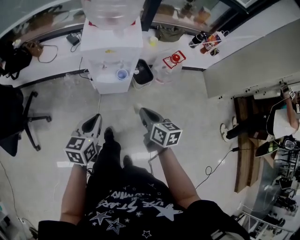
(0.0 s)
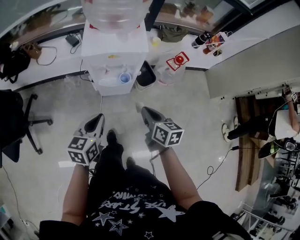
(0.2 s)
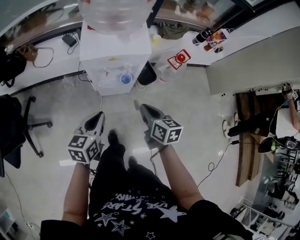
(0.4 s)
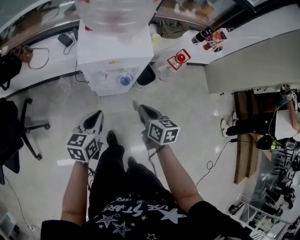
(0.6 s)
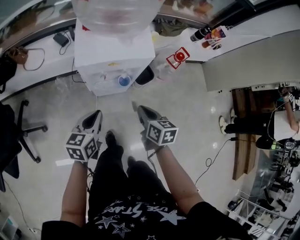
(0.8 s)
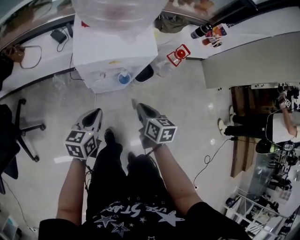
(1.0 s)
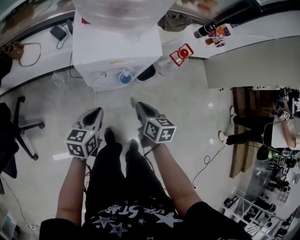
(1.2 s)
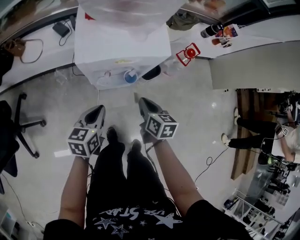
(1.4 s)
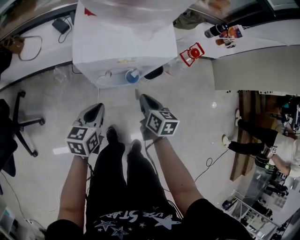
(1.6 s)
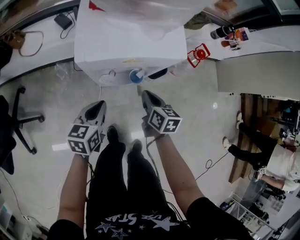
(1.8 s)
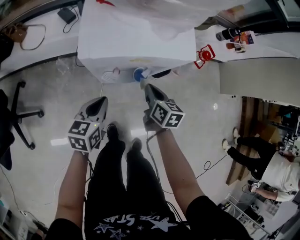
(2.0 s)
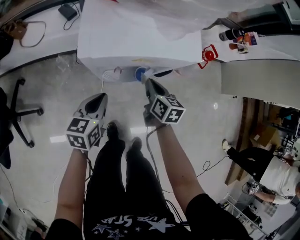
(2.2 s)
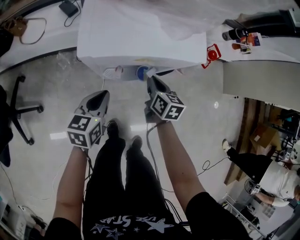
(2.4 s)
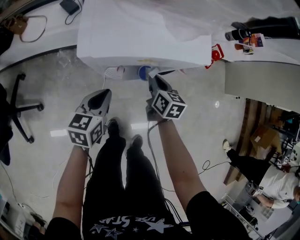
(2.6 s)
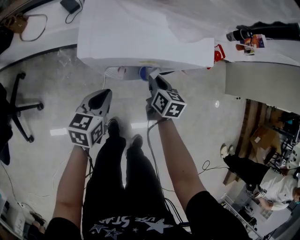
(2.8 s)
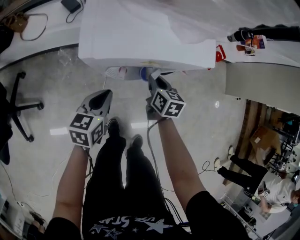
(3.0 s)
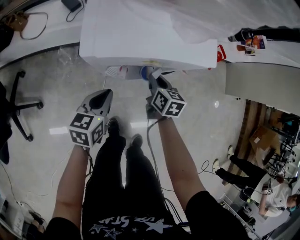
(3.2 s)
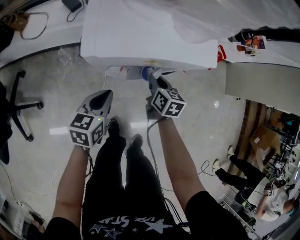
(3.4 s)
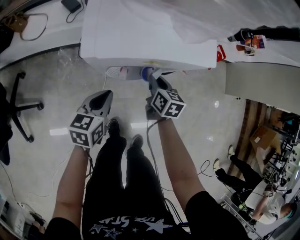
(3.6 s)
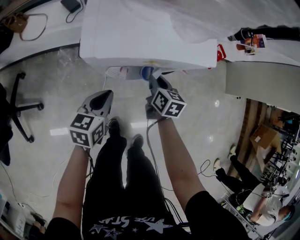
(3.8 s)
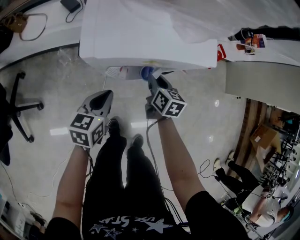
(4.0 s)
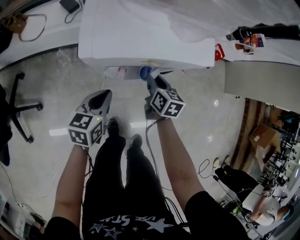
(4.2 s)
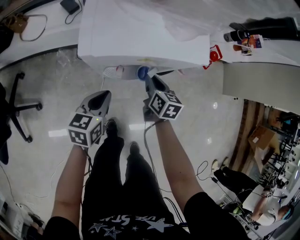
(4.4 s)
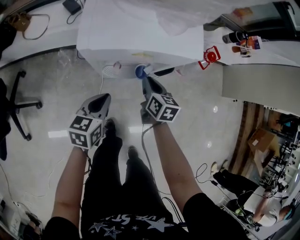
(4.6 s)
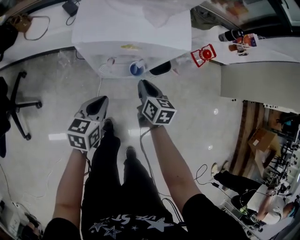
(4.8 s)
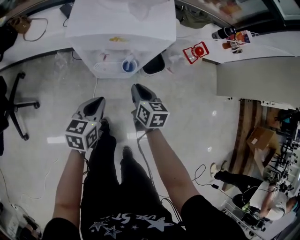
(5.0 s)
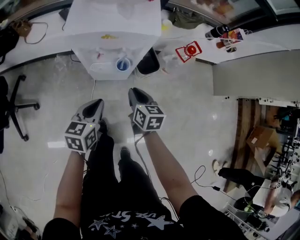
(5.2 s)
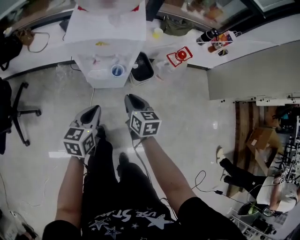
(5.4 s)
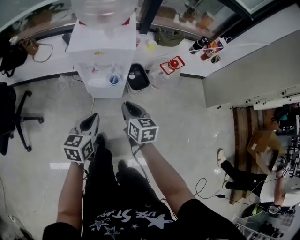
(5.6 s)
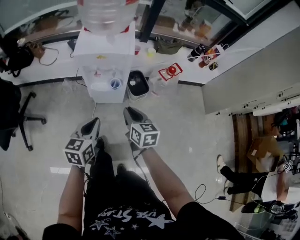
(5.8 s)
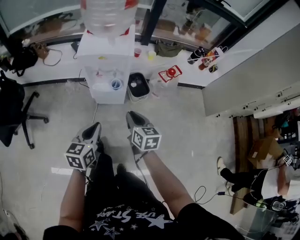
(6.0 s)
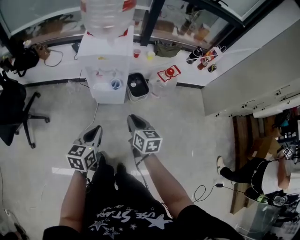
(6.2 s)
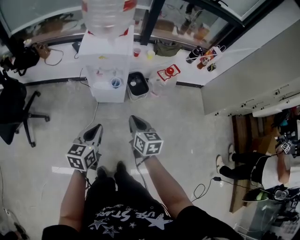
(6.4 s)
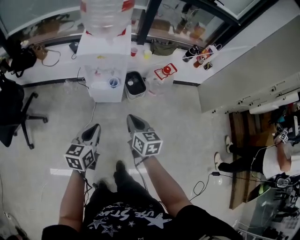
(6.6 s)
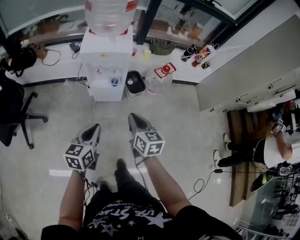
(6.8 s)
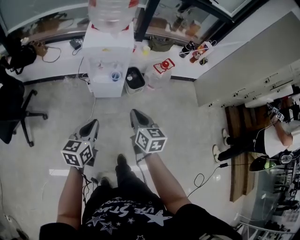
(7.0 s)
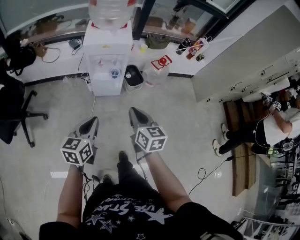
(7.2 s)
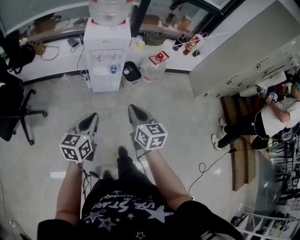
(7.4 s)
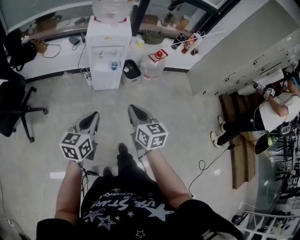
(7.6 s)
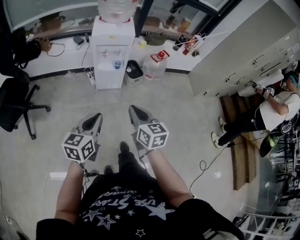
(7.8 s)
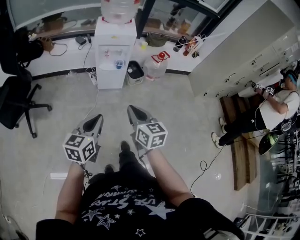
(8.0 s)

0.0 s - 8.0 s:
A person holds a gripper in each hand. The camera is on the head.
0.0 s - 1.6 s: The grippers both shift forward and downward by some 25 cm.
1.6 s - 3.2 s: The left gripper goes approximately 5 cm downward. Meanwhile the right gripper goes roughly 15 cm forward and downward.
3.2 s - 4.8 s: The grippers both shift backward by about 5 cm.
4.8 s - 6.4 s: The left gripper moves backward, upward and to the right, roughly 35 cm. The right gripper travels backward and upward by approximately 35 cm.
6.4 s - 8.0 s: The two grippers go some 30 cm backward.

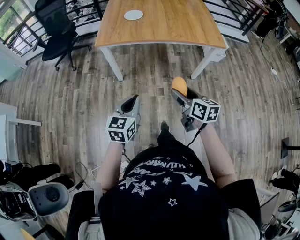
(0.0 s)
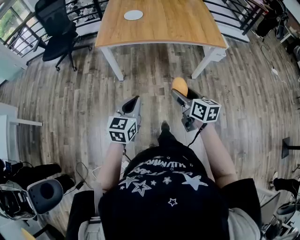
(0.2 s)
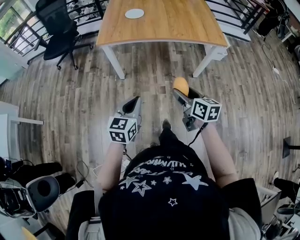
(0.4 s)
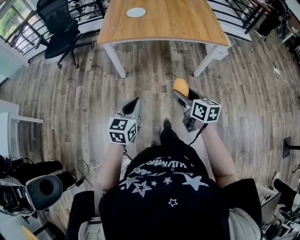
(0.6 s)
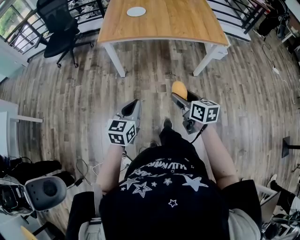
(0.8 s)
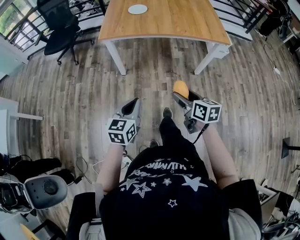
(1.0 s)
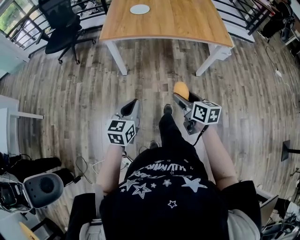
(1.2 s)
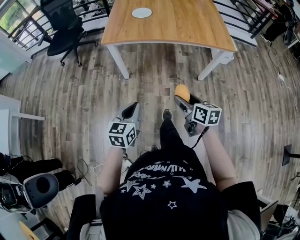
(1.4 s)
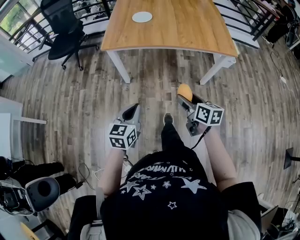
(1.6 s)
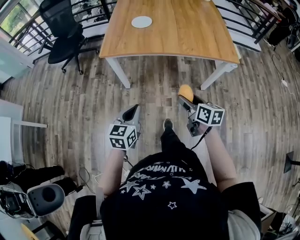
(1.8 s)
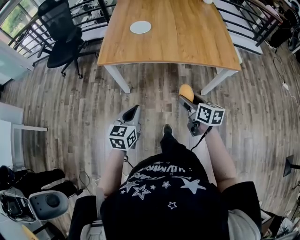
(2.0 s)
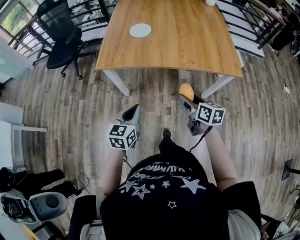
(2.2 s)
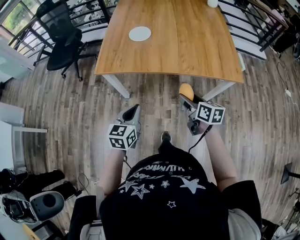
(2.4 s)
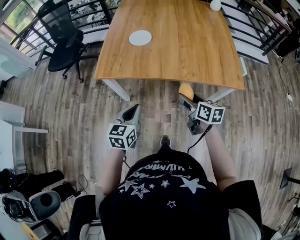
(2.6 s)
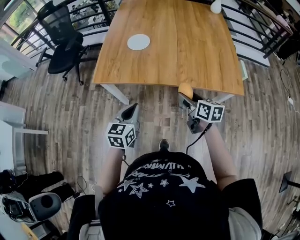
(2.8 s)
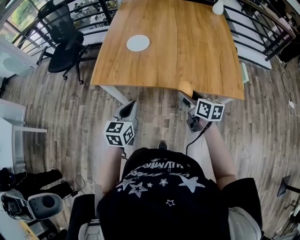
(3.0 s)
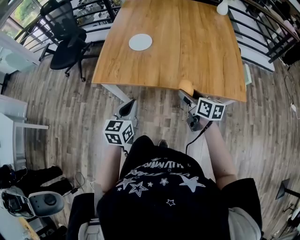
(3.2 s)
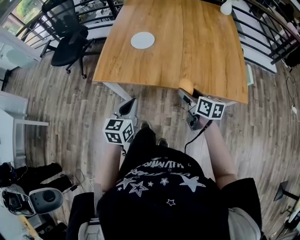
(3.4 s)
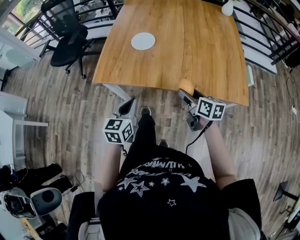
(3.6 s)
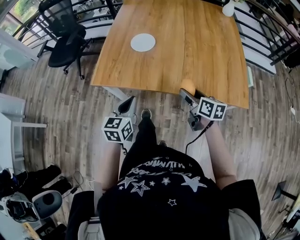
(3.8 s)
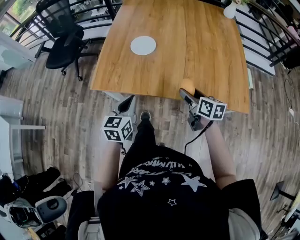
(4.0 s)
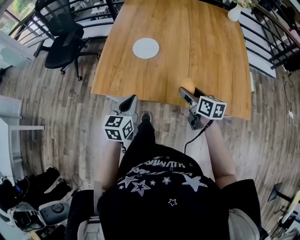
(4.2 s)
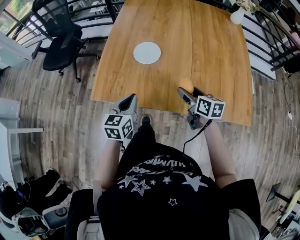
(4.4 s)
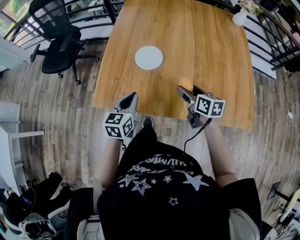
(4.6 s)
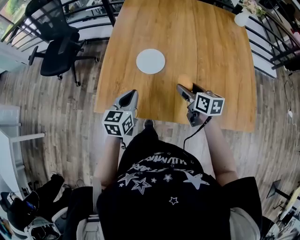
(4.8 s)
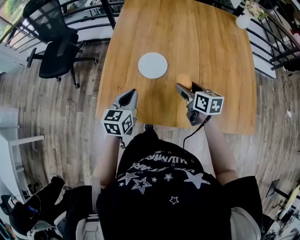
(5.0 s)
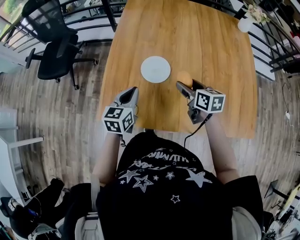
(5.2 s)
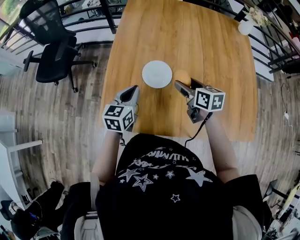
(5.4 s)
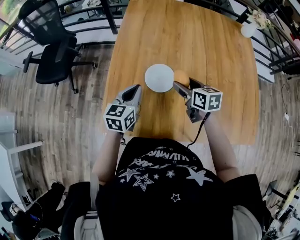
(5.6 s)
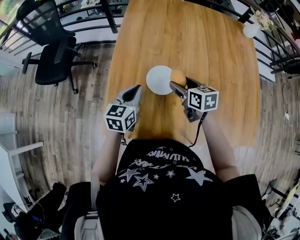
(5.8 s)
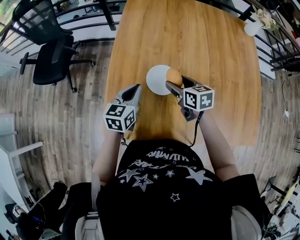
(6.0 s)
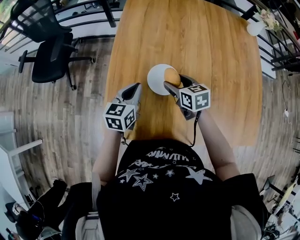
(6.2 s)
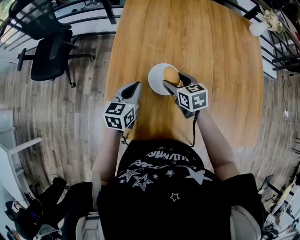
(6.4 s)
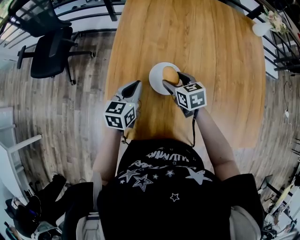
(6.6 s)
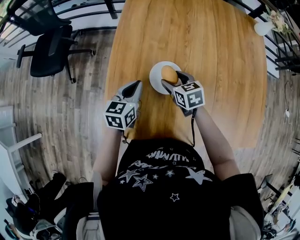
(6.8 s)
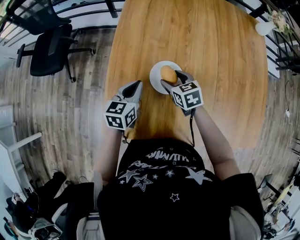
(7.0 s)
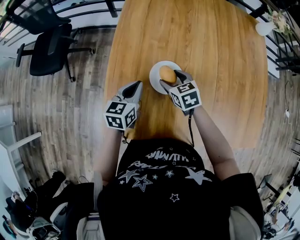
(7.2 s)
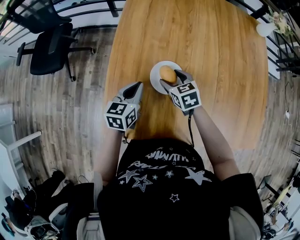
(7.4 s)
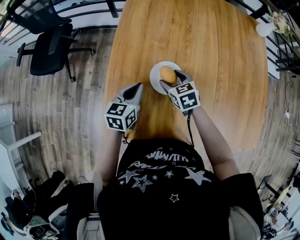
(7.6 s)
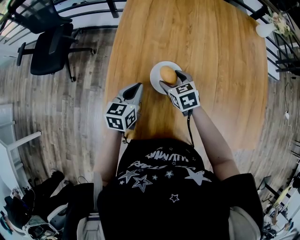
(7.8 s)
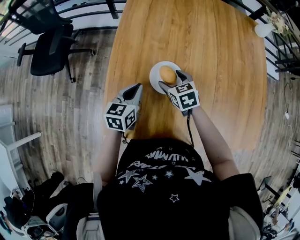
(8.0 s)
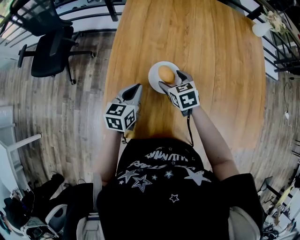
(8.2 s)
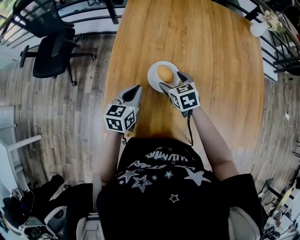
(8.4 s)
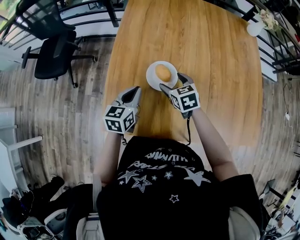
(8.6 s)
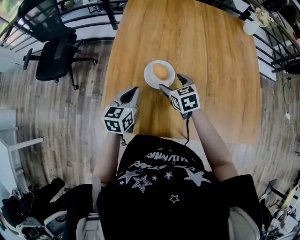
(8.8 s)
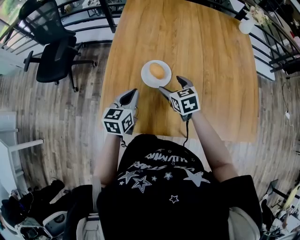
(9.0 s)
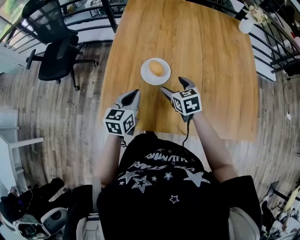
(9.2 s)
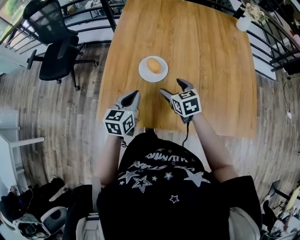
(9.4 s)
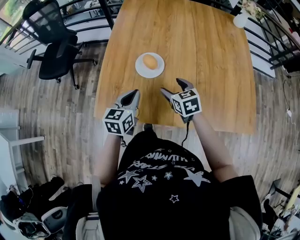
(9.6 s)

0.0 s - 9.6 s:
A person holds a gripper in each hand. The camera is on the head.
0.0 s - 1.6 s: The right gripper moves forward, roughly 5 cm; the left gripper moves some 5 cm.
1.6 s - 3.2 s: Both grippers travel together forward, approximately 30 cm.
3.2 s - 4.8 s: Both grippers travel together forward, some 25 cm.
4.8 s - 6.4 s: The right gripper goes some 20 cm forward and to the left, and rotates about 20 degrees. The left gripper is displaced forward by roughly 15 cm.
6.4 s - 8.0 s: There are only small adjustments of the grippers.
8.0 s - 9.6 s: The two grippers go approximately 15 cm backward, to the right and upward.

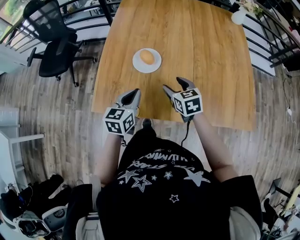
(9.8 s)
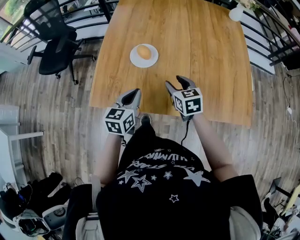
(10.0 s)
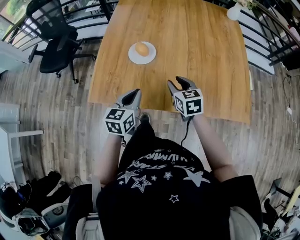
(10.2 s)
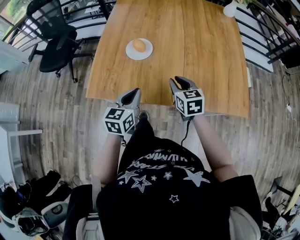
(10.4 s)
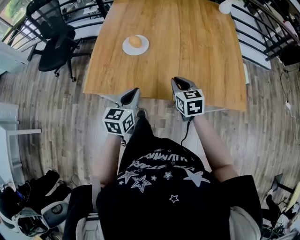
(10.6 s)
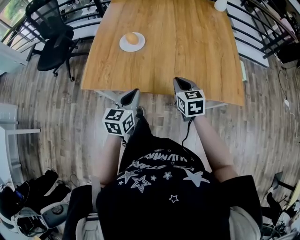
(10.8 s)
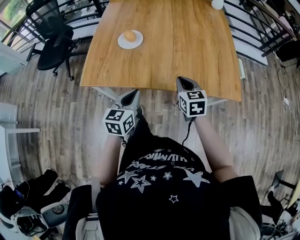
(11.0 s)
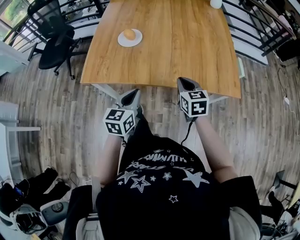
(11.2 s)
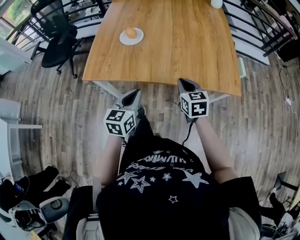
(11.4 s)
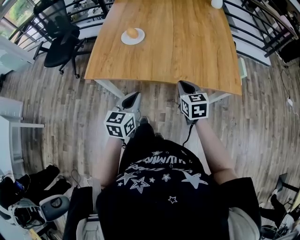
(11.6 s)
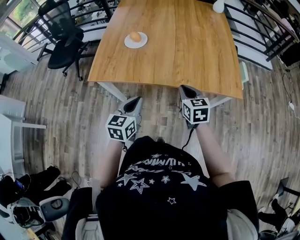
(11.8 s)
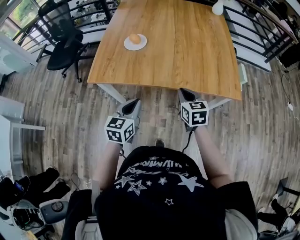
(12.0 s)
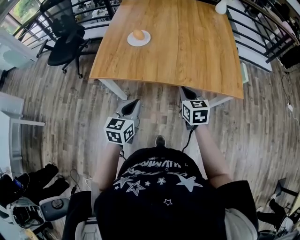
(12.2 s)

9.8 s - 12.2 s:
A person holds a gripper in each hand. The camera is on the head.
9.8 s - 11.0 s: The two grippers go some 20 cm backward and to the right. The right gripper closes.
11.0 s - 12.2 s: Both grippers travel together backward, about 10 cm.

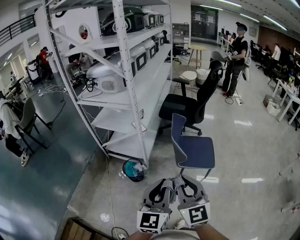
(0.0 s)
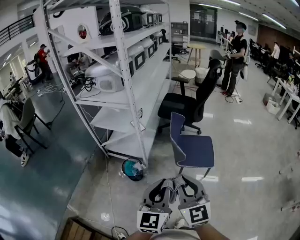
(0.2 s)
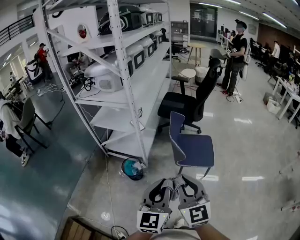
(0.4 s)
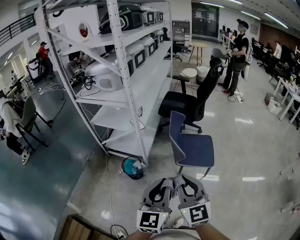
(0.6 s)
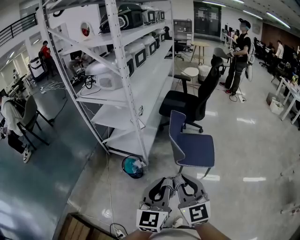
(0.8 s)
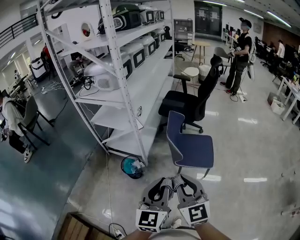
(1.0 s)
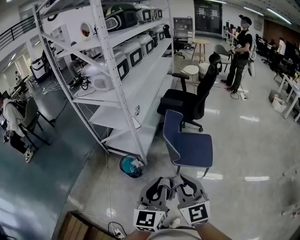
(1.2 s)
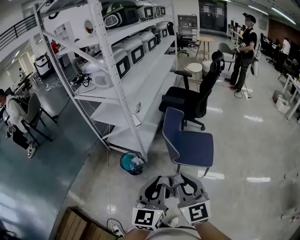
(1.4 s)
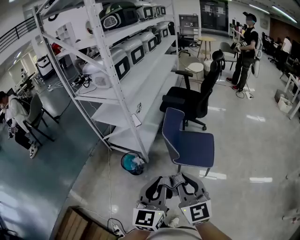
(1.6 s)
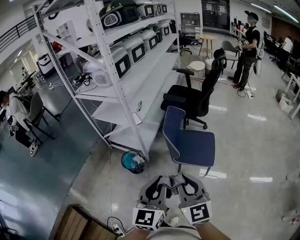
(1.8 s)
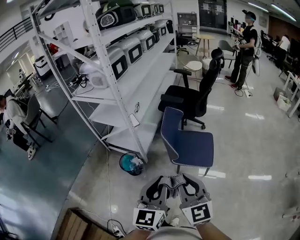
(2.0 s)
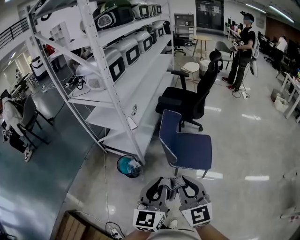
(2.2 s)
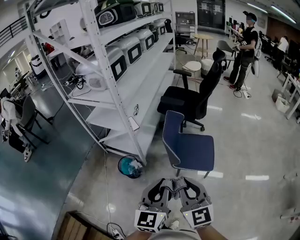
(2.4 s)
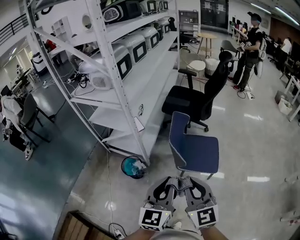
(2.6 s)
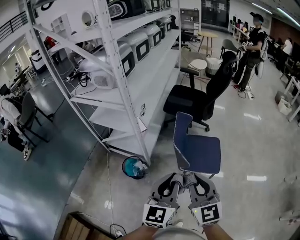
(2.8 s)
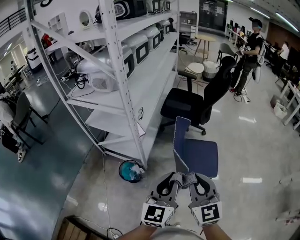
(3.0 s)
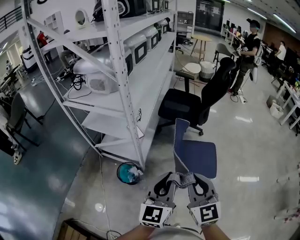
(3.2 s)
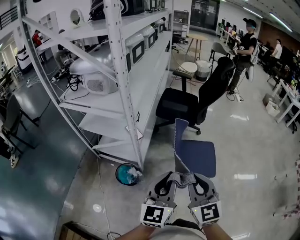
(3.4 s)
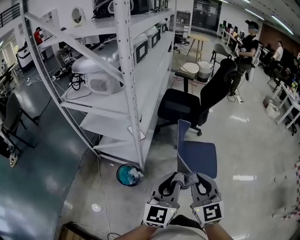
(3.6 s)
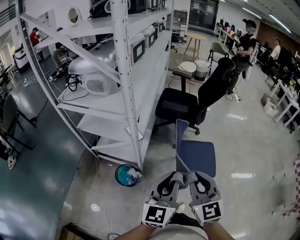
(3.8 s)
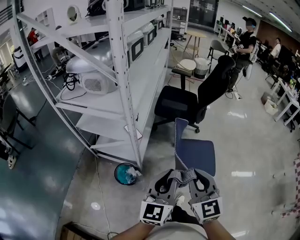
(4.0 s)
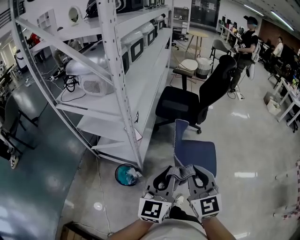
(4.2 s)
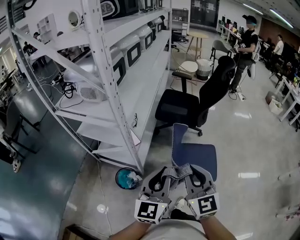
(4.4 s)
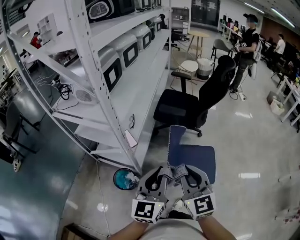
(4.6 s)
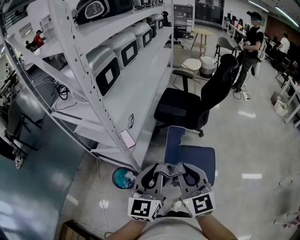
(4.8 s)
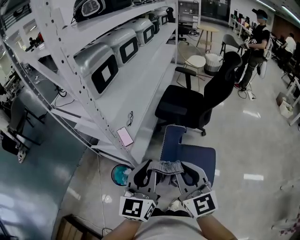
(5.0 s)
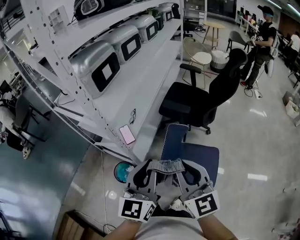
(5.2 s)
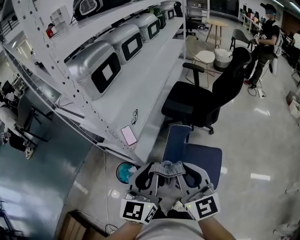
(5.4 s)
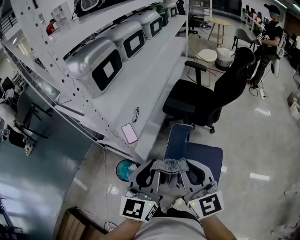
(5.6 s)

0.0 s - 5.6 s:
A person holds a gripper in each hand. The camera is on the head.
0.0 s - 1.4 s: Both grippers move to the right, approximately 10 cm.
1.4 s - 2.8 s: The grippers both shift forward by approximately 15 cm.
2.8 s - 4.2 s: The grippers both shift forward and to the left by about 15 cm.
4.2 s - 5.6 s: The two grippers go approximately 15 cm forward and to the right. The right gripper swivels approximately 20 degrees.
